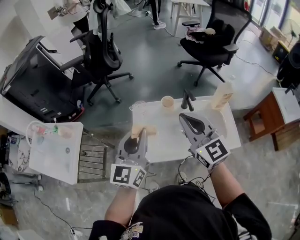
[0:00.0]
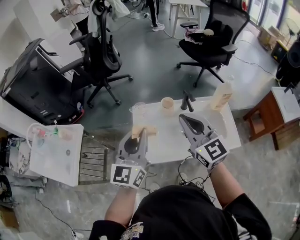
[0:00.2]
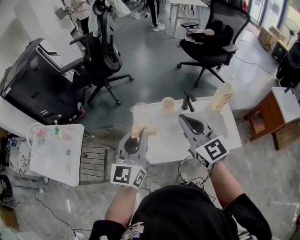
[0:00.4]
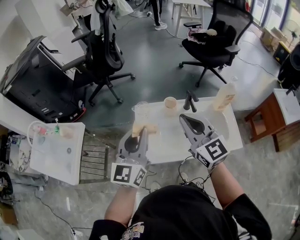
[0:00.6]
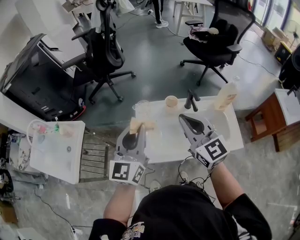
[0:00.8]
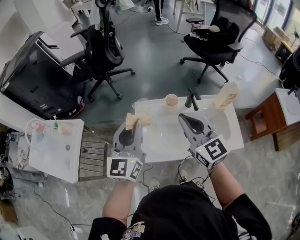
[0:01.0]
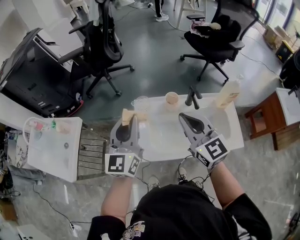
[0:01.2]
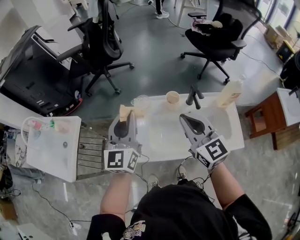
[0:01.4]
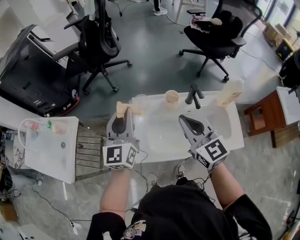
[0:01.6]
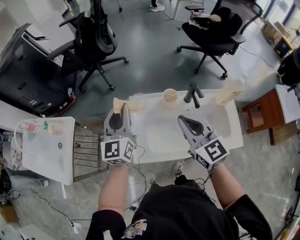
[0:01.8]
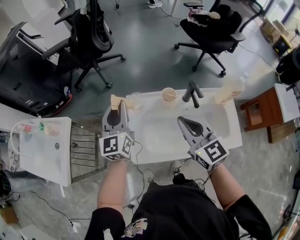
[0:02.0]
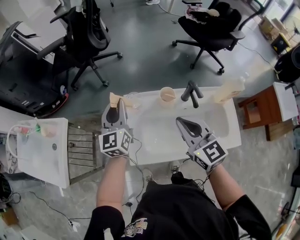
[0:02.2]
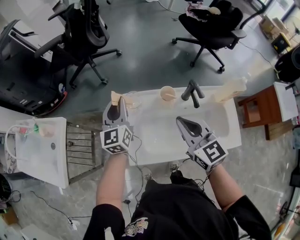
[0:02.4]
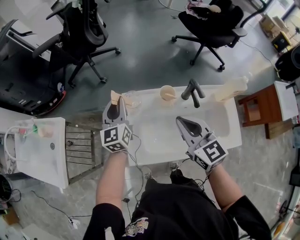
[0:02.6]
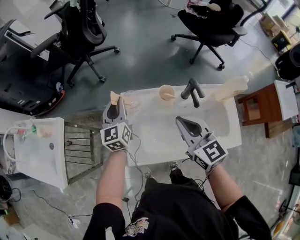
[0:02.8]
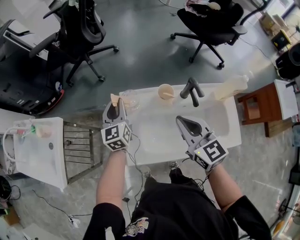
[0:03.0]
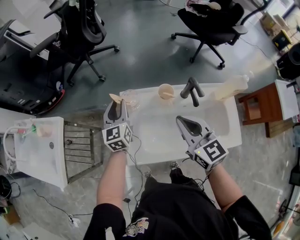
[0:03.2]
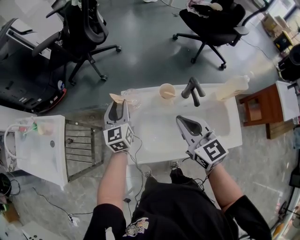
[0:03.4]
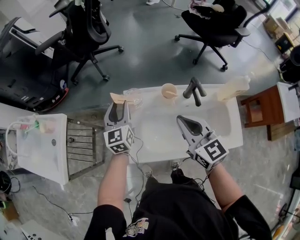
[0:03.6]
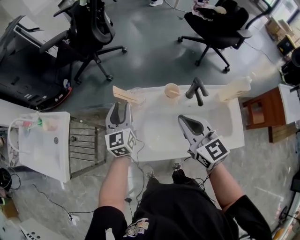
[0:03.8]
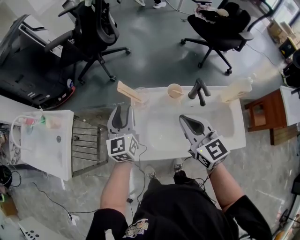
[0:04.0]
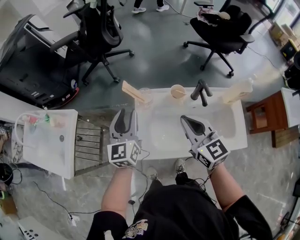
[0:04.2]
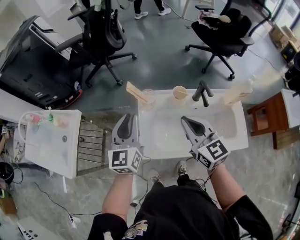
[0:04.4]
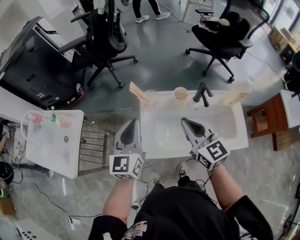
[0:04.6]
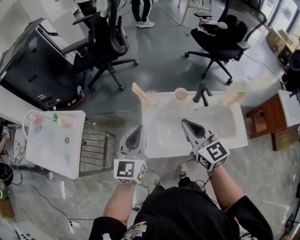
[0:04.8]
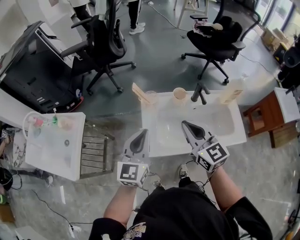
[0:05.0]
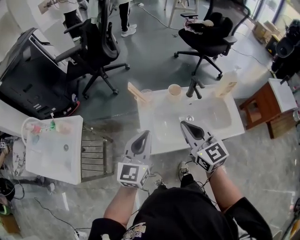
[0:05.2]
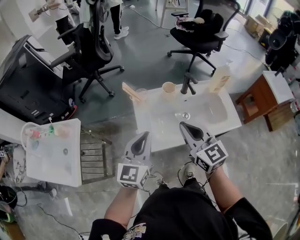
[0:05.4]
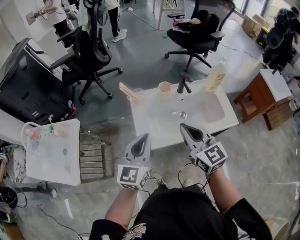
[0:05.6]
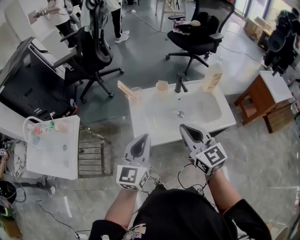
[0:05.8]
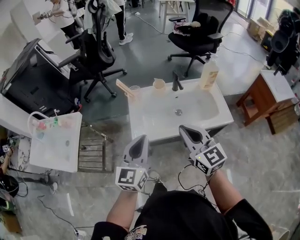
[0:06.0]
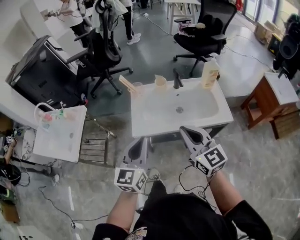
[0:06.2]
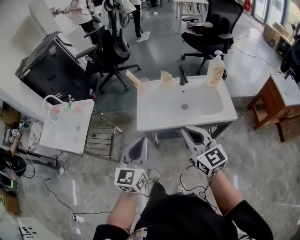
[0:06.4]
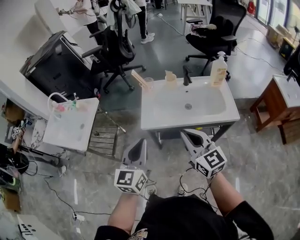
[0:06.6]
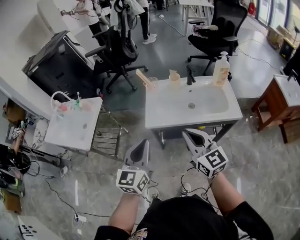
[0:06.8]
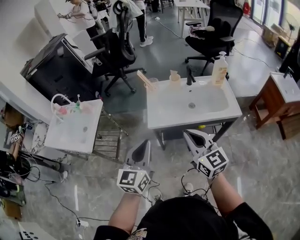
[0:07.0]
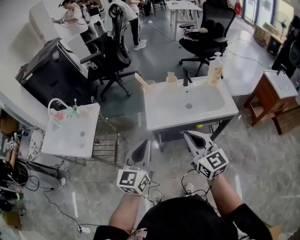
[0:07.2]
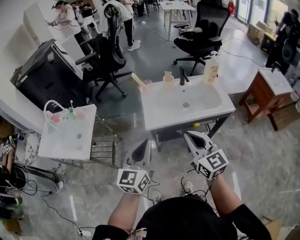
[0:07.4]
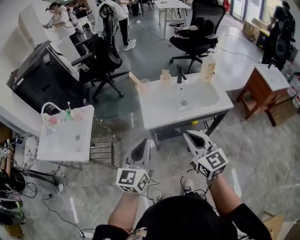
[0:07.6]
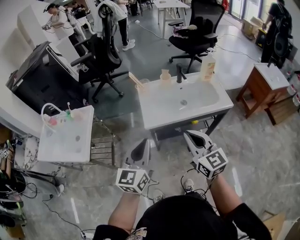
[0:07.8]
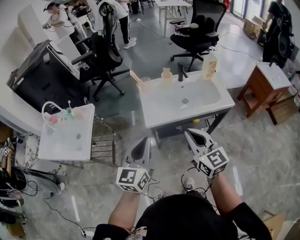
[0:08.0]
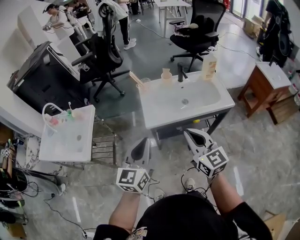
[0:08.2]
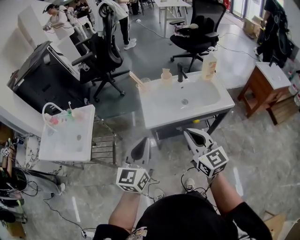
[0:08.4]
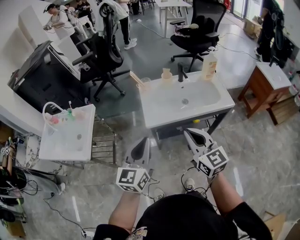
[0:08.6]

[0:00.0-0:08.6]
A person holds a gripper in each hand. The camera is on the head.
0:00.0 to 0:01.4: The left gripper goes approximately 10 cm forward and to the left. Meanwhile the right gripper goes roughly 5 cm downward.
0:01.4 to 0:02.8: The right gripper is displaced downward by about 10 cm. The left gripper heads downward and forward, covering some 25 cm.
0:02.8 to 0:04.4: The right gripper ends up about 5 cm from where it was; the left gripper is displaced backward and upward by approximately 15 cm.
0:04.4 to 0:05.8: The two grippers go roughly 20 cm backward. The left gripper turns by approximately 20 degrees.
0:05.8 to 0:07.2: The two grippers go some 20 cm backward.
0:07.2 to 0:08.6: The grippers make only small movements.

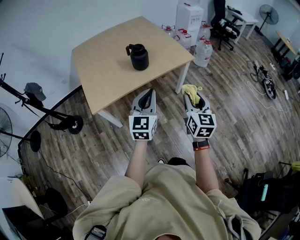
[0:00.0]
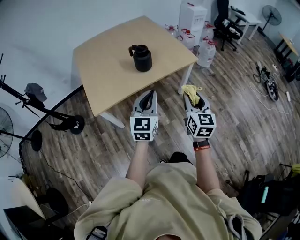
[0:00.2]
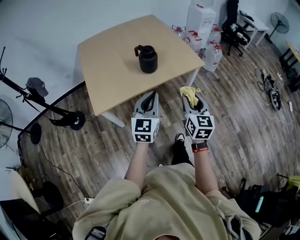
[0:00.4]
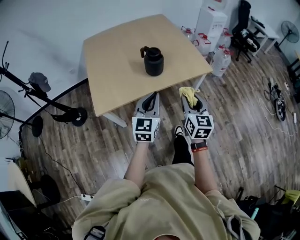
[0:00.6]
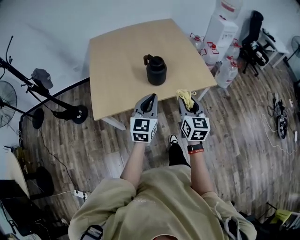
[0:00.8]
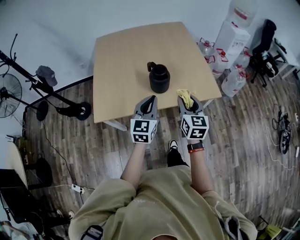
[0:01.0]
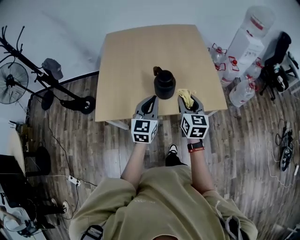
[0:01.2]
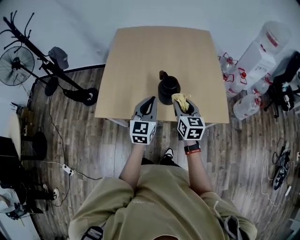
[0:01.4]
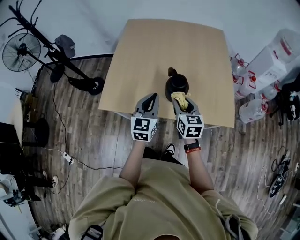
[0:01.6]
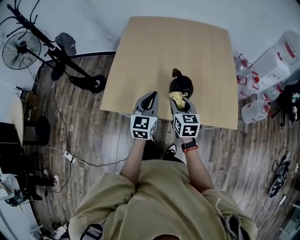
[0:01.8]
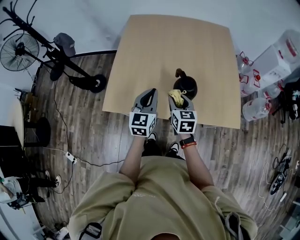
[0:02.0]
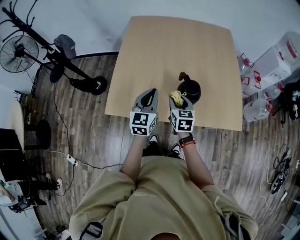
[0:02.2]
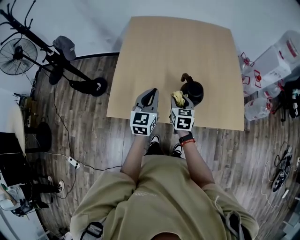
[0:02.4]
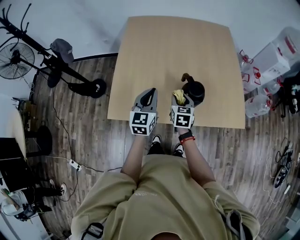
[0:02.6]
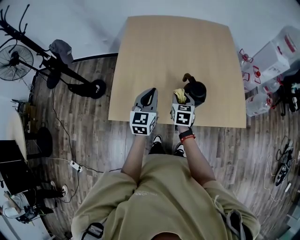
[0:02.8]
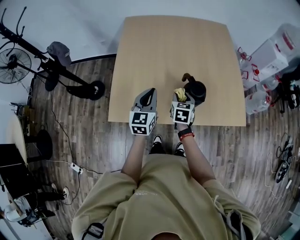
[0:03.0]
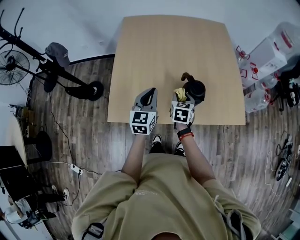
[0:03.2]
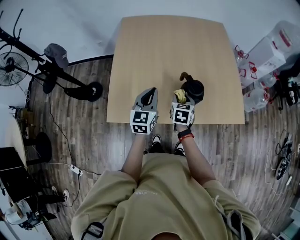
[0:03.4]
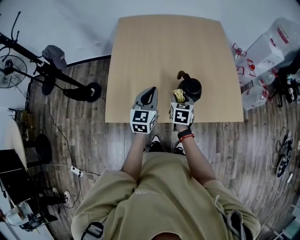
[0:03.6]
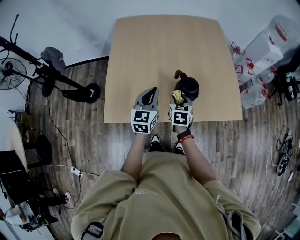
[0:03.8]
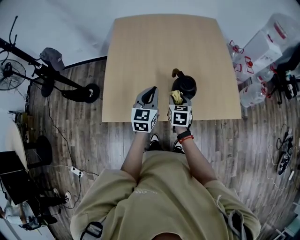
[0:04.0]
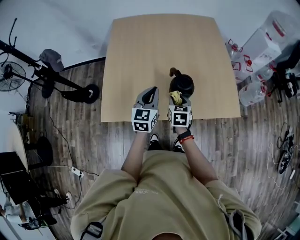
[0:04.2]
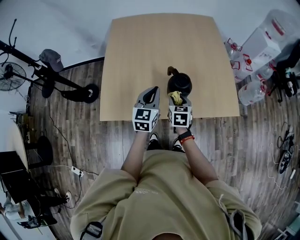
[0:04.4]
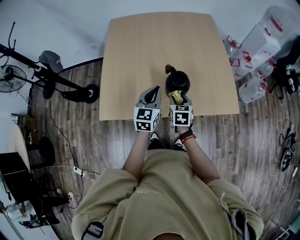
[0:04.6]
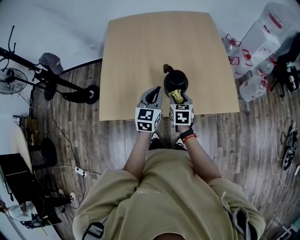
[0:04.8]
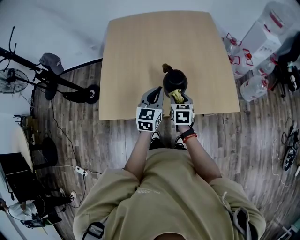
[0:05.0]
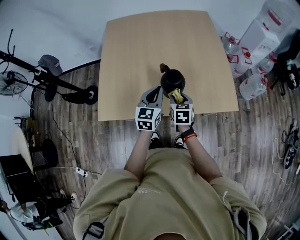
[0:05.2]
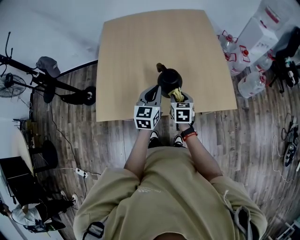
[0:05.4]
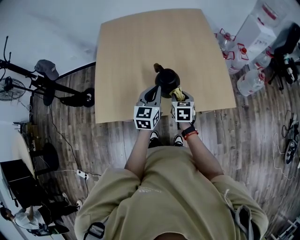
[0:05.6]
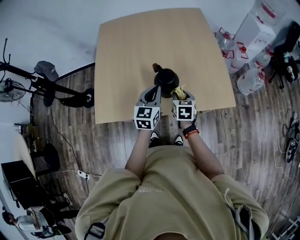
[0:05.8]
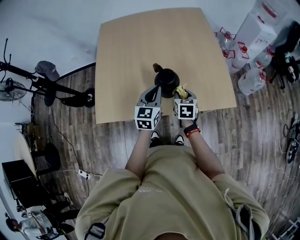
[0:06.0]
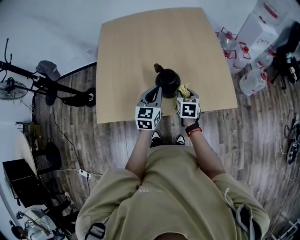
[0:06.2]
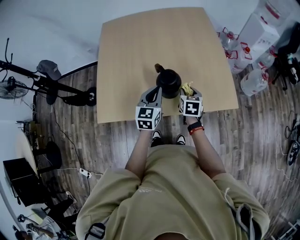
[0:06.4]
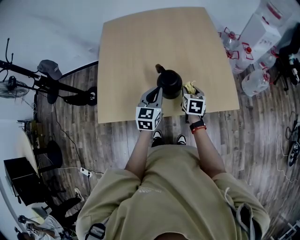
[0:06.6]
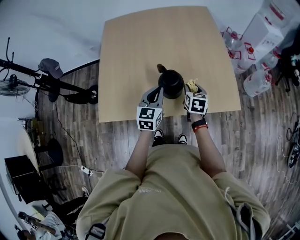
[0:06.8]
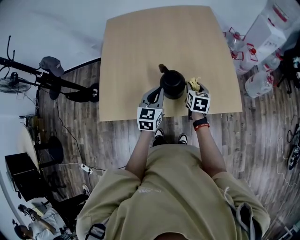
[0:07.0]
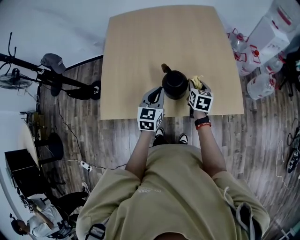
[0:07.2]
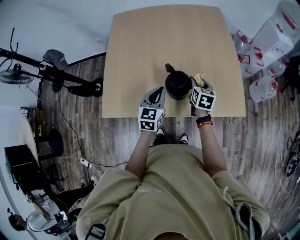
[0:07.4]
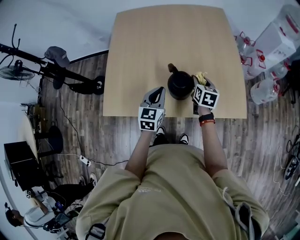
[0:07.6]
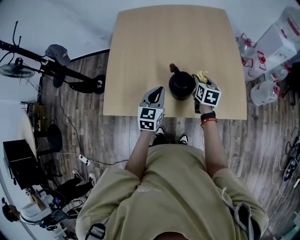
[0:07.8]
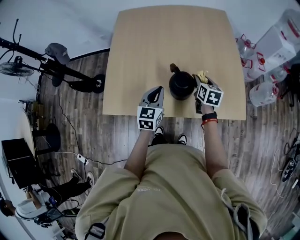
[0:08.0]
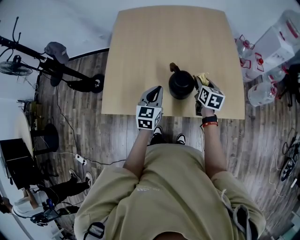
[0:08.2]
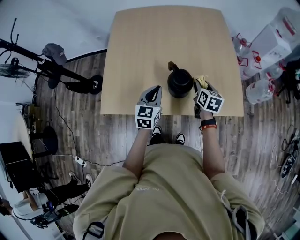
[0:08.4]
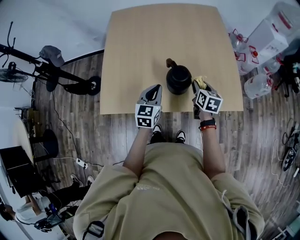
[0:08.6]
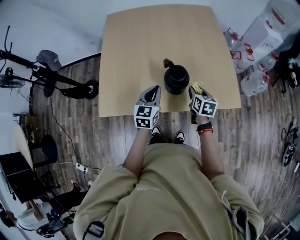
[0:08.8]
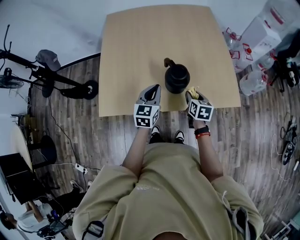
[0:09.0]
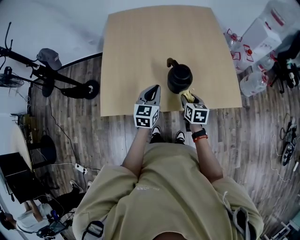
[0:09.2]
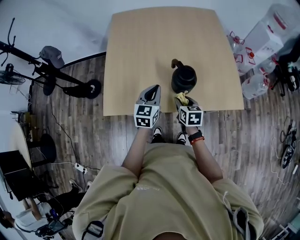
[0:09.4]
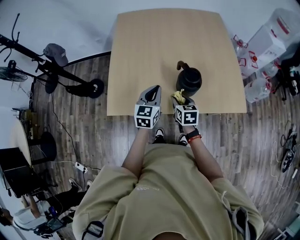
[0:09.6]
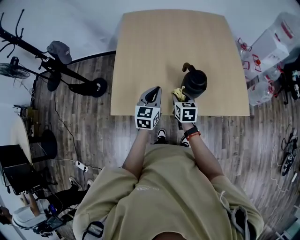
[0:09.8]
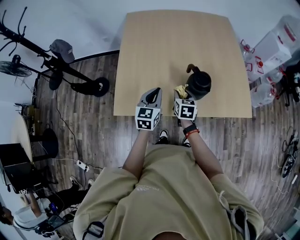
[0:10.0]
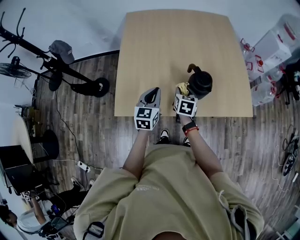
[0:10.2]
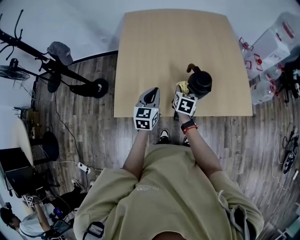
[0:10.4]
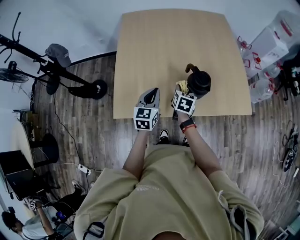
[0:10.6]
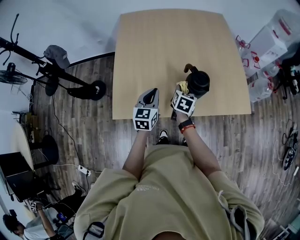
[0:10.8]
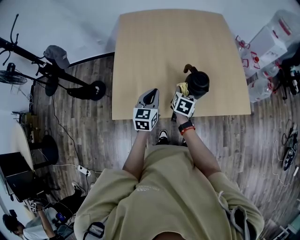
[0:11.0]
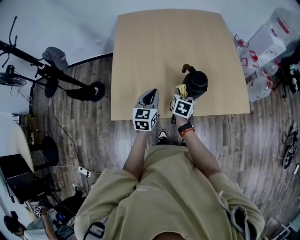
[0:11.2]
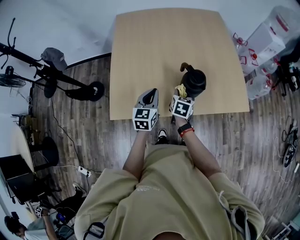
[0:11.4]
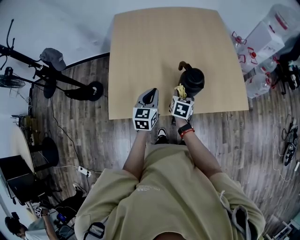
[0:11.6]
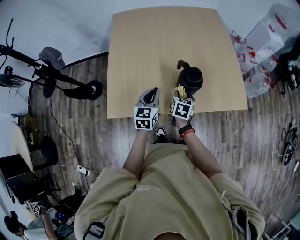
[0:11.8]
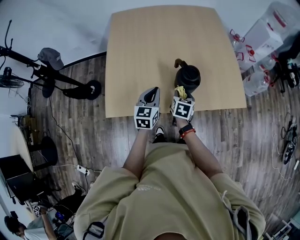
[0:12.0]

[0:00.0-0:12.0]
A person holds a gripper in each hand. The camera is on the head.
0:00.0 to 0:01.6: The two grippers travel together, some 50 cm. The right gripper rotates roughly 40 degrees. Meanwhile the left gripper rotates roughly 30 degrees.
0:01.6 to 0:03.0: The right gripper is displaced forward, to the left and downward by some 20 cm, and changes its angle by roughly 20 degrees. Meanwhile the left gripper heads to the left and forward, covering approximately 20 cm.
0:03.0 to 0:04.4: The grippers both shift to the right by about 10 cm.
0:04.4 to 0:06.0: The two grippers go some 10 cm to the right.
0:06.0 to 0:07.6: The right gripper moves forward, approximately 10 cm; the left gripper shifts by about 5 cm.
0:07.6 to 0:09.0: The left gripper changes place by about 5 cm. Meanwhile the right gripper travels backward by roughly 15 cm.
0:09.0 to 0:10.4: The grippers both shift to the left by roughly 15 cm.
0:10.4 to 0:12.0: The grippers both shift to the right by approximately 5 cm.

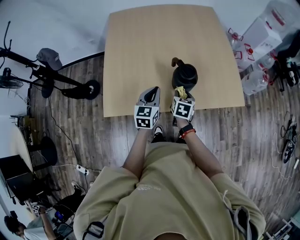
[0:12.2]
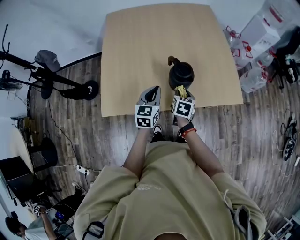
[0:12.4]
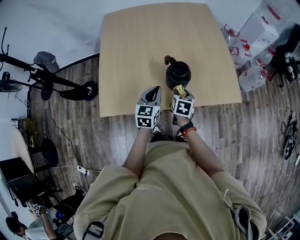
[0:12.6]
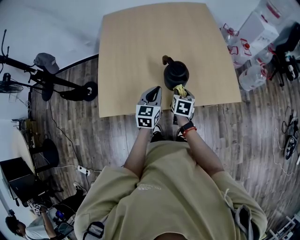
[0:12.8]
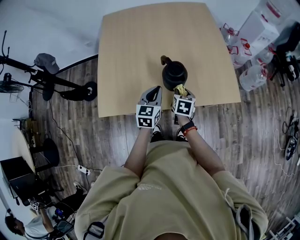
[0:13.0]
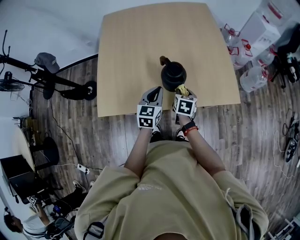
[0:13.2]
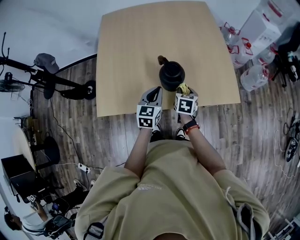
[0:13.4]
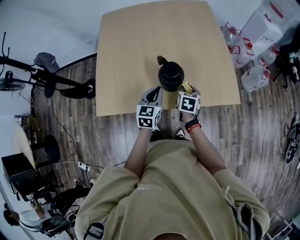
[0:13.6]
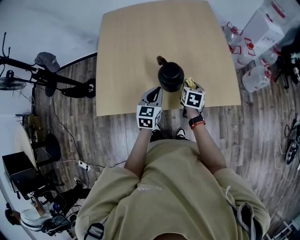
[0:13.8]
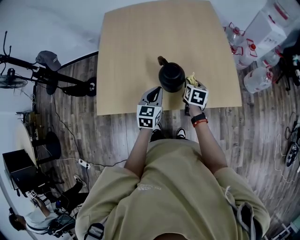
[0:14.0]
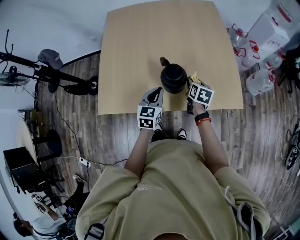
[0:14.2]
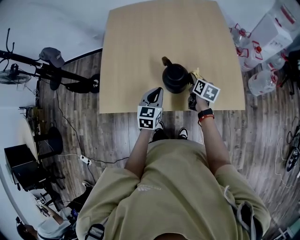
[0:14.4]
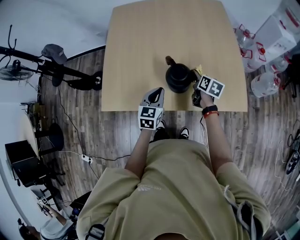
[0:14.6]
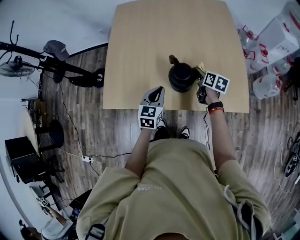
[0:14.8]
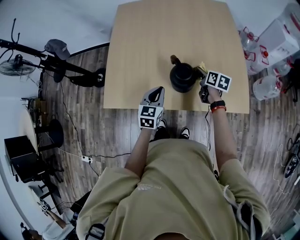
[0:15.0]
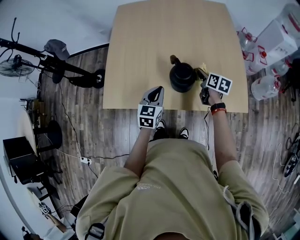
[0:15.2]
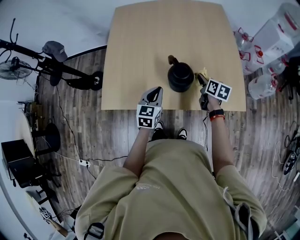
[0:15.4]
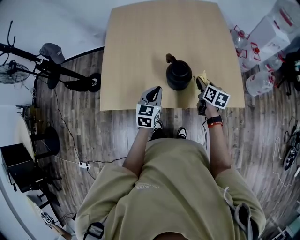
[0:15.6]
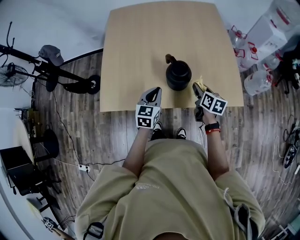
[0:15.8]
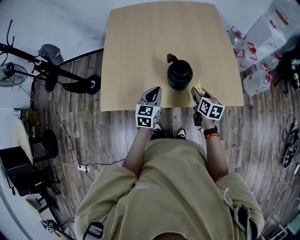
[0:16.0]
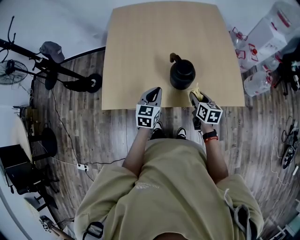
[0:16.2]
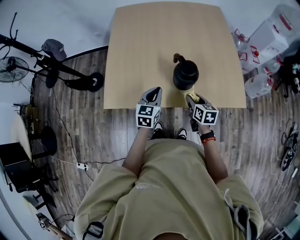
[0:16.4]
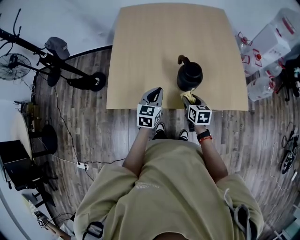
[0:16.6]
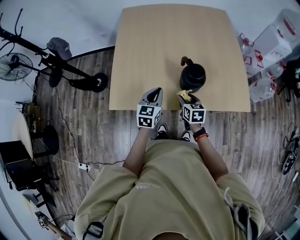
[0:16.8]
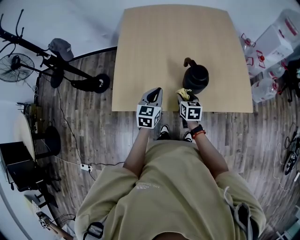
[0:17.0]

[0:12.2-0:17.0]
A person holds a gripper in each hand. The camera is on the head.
0:12.2 to 0:13.8: The left gripper travels to the right by some 10 cm; the right gripper heads to the right and forward, covering some 15 cm.
0:13.8 to 0:15.4: The right gripper shifts approximately 5 cm forward, and swivels some 20 degrees.
0:15.4 to 0:17.0: The right gripper shifts roughly 25 cm to the left and backward, and turns by roughly 20 degrees. The left gripper is displaced to the left by roughly 10 cm.
